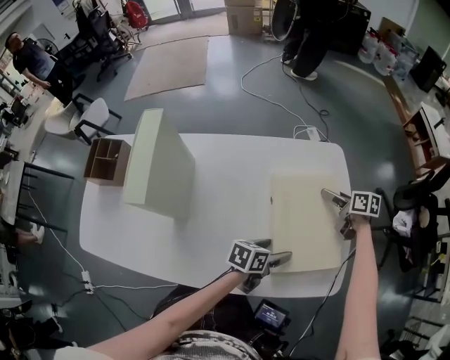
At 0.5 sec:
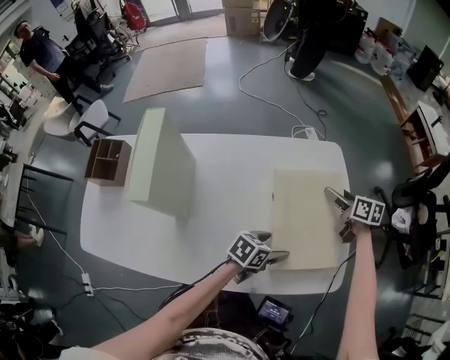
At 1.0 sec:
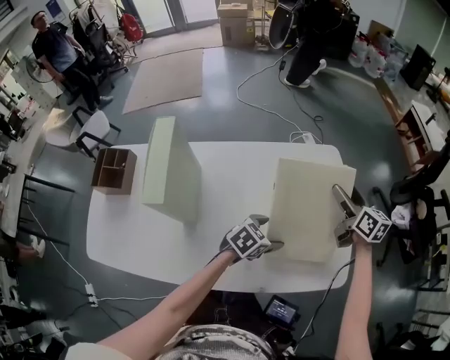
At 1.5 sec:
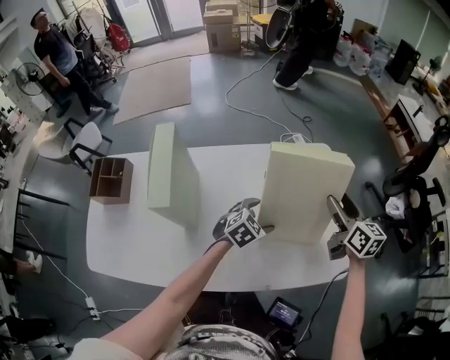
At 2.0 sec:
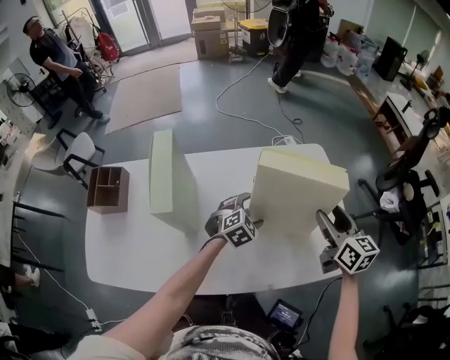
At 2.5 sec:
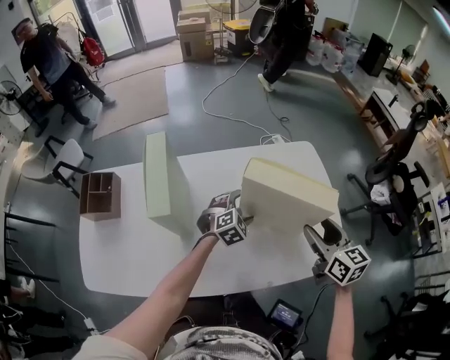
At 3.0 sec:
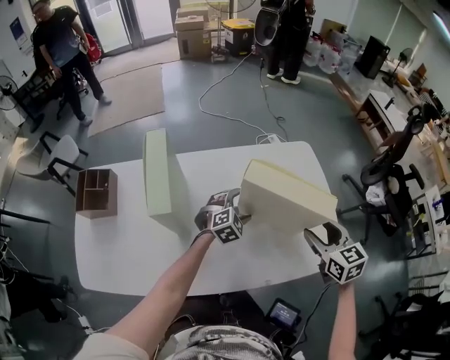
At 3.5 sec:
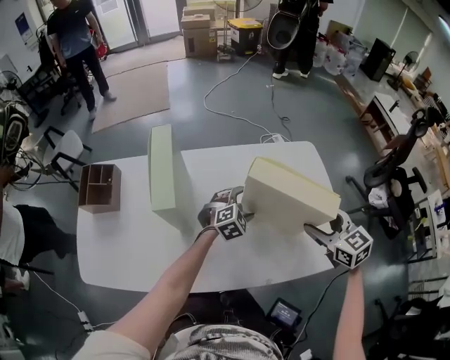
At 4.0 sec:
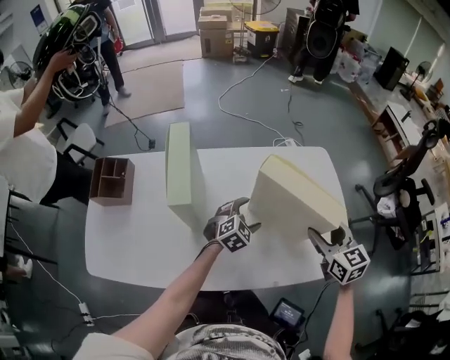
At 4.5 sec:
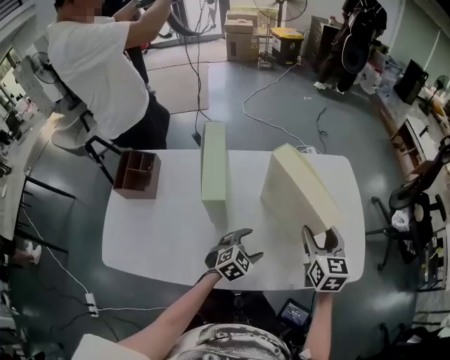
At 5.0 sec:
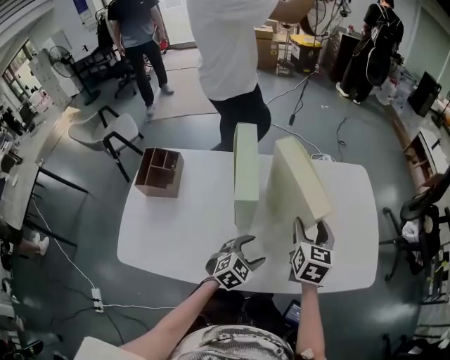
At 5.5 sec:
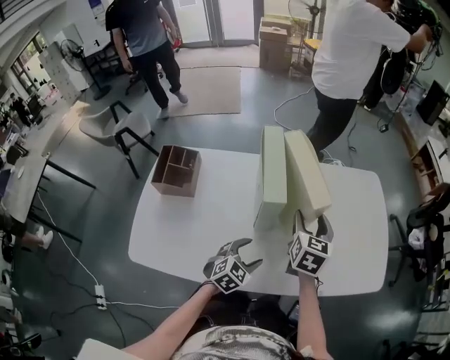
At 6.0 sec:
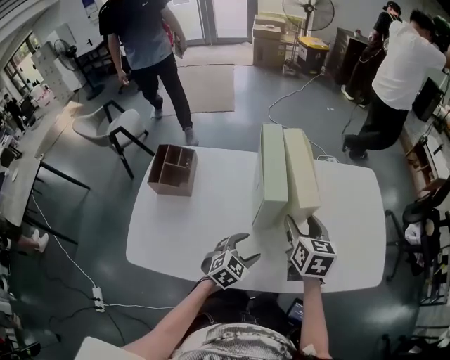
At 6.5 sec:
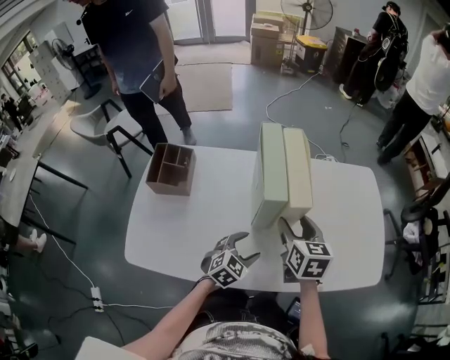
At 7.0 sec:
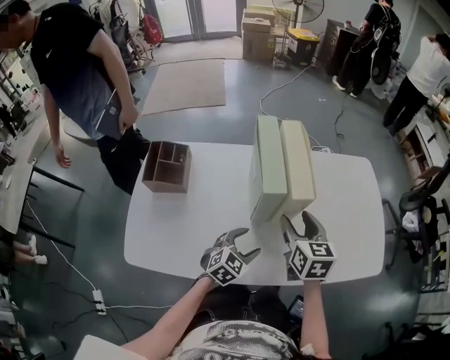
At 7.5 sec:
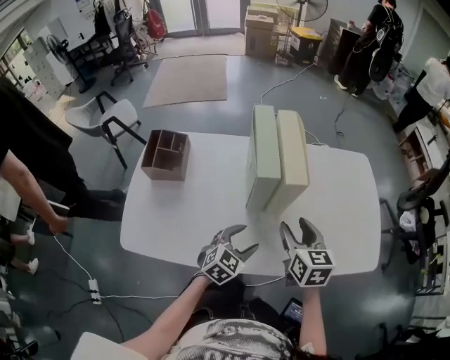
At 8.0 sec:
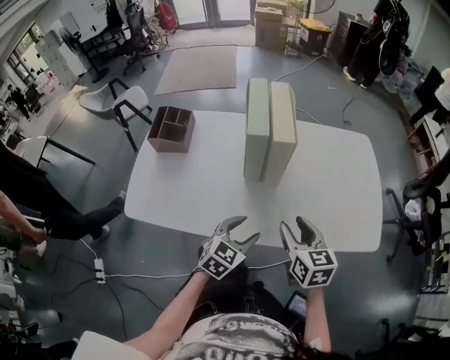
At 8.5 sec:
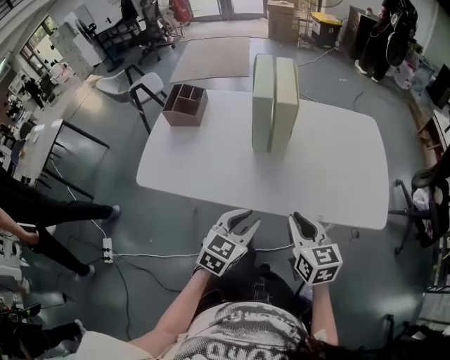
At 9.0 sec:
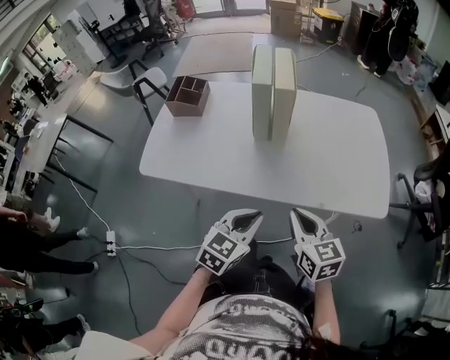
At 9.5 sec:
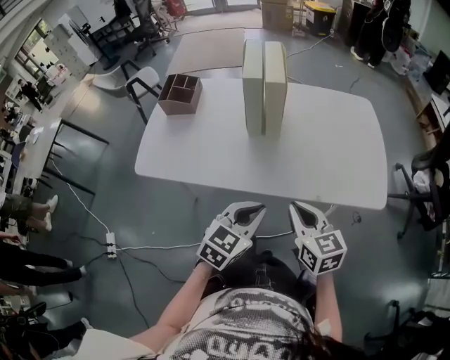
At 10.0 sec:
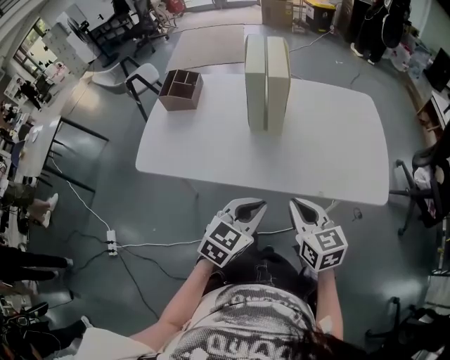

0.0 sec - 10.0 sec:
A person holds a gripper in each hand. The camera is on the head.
0.0 sec - 2.0 sec: The right gripper shifts roughly 25 cm upward and backward, and rotates some 40 degrees. The left gripper travels to the left and forward by some 15 cm, and rotates around the line of its fingers by some 70 degrees, clockwise from behind.
2.0 sec - 4.0 sec: The right gripper changes place by approximately 5 cm, and swivels about 20 degrees.
4.0 sec - 6.0 sec: The right gripper goes roughly 30 cm to the left; the left gripper is displaced backward and to the left by approximately 25 cm.
6.0 sec - 8.0 sec: The right gripper shifts approximately 20 cm backward and to the right. The left gripper goes approximately 15 cm backward, to the right and upward.
8.0 sec - 10.0 sec: The left gripper heads backward and upward, covering roughly 15 cm, and closes, while the right gripper travels backward by roughly 15 cm, and closes its fingers.

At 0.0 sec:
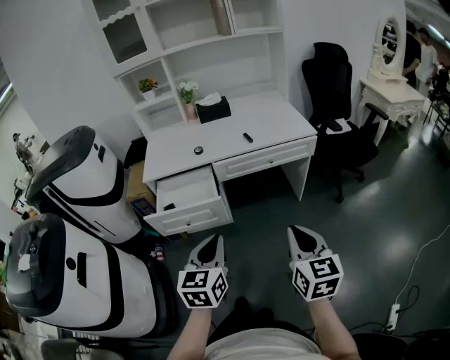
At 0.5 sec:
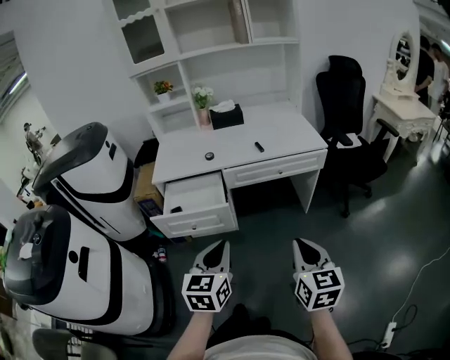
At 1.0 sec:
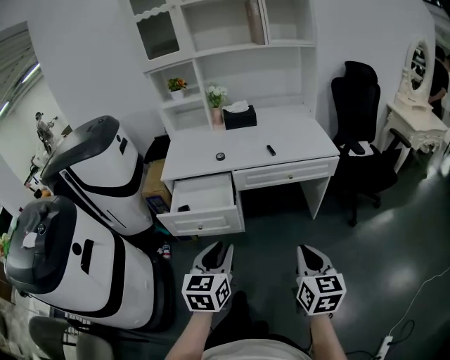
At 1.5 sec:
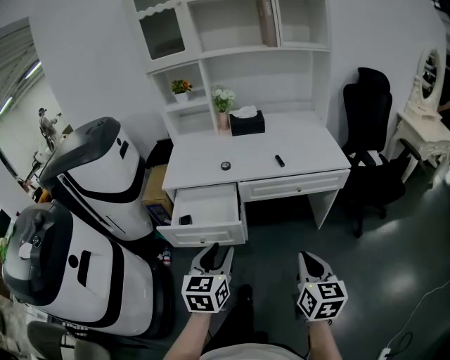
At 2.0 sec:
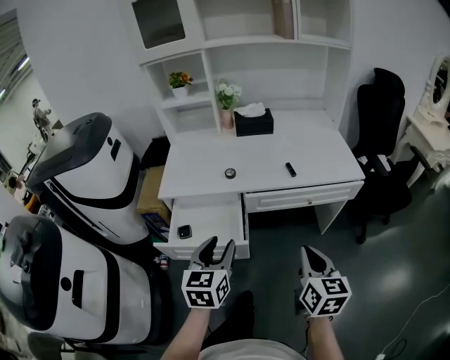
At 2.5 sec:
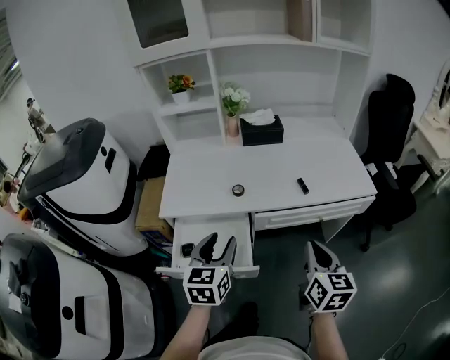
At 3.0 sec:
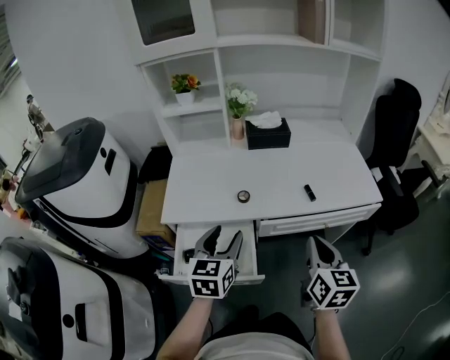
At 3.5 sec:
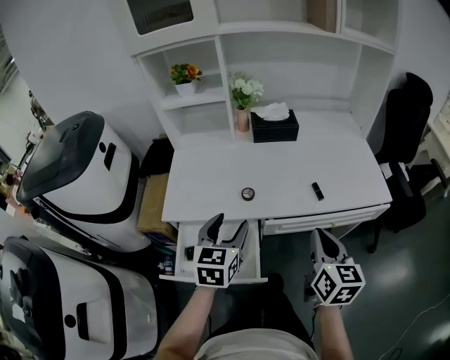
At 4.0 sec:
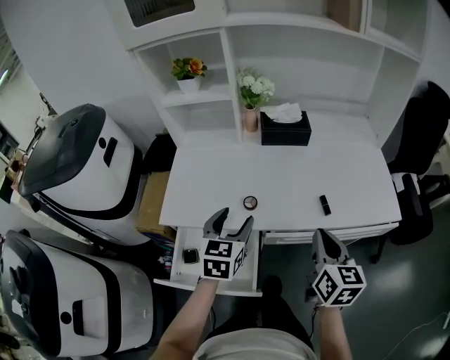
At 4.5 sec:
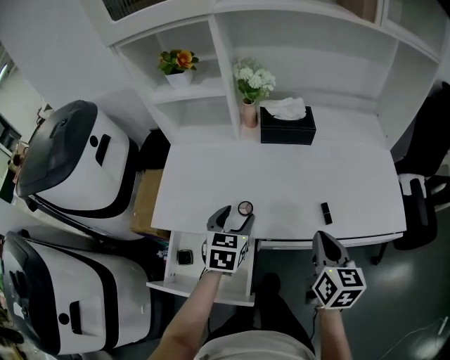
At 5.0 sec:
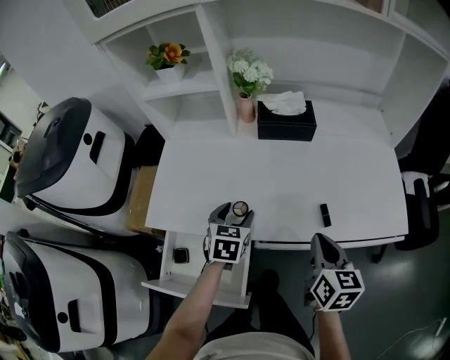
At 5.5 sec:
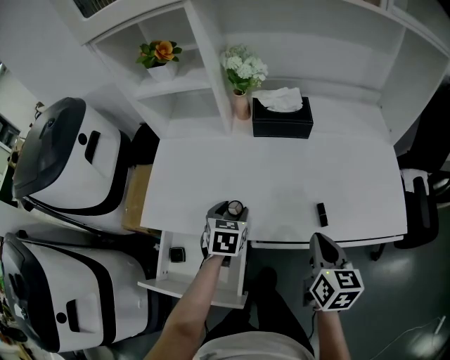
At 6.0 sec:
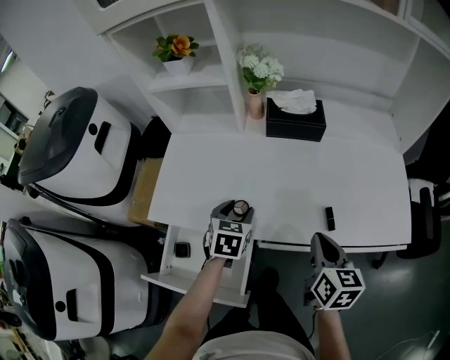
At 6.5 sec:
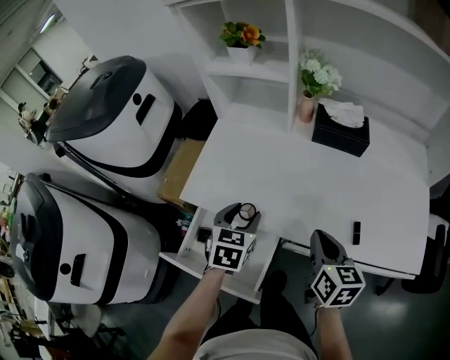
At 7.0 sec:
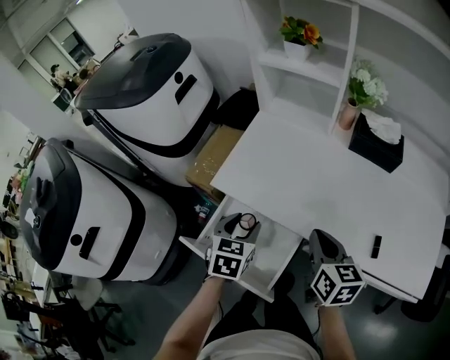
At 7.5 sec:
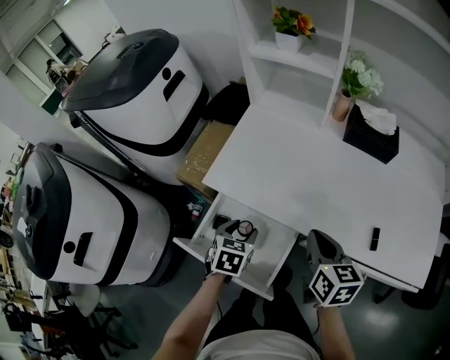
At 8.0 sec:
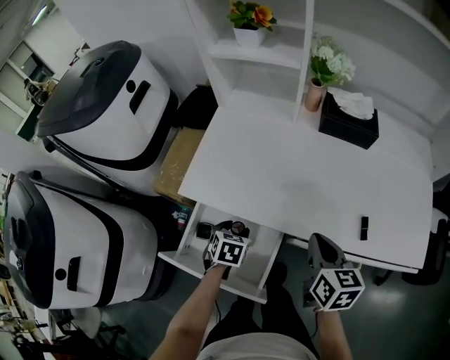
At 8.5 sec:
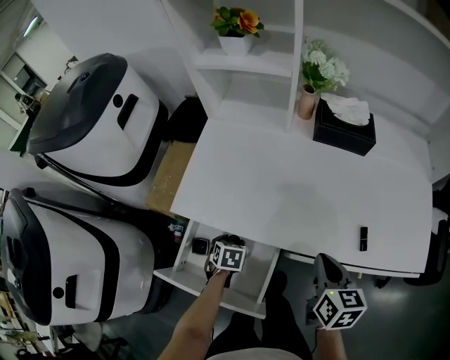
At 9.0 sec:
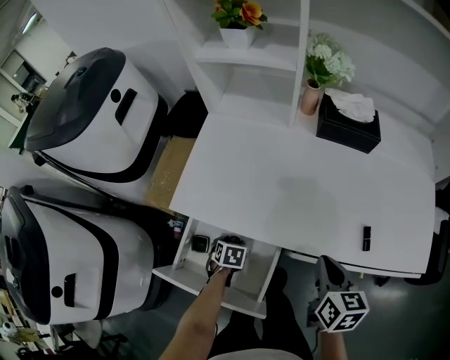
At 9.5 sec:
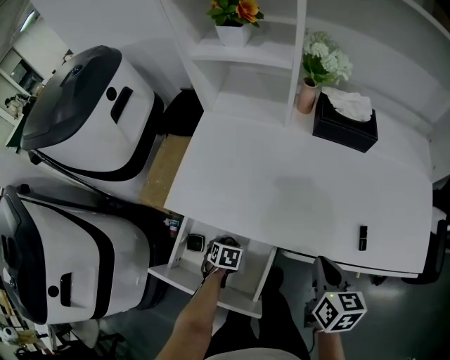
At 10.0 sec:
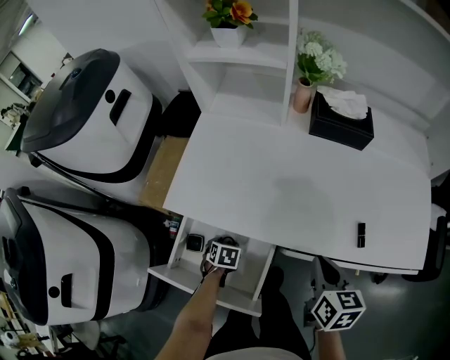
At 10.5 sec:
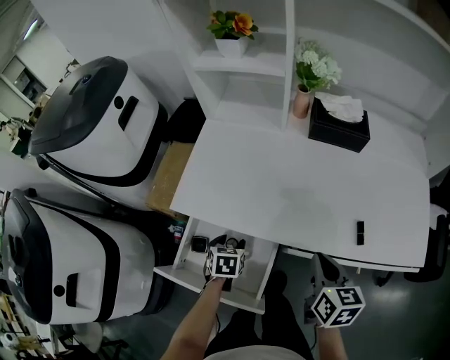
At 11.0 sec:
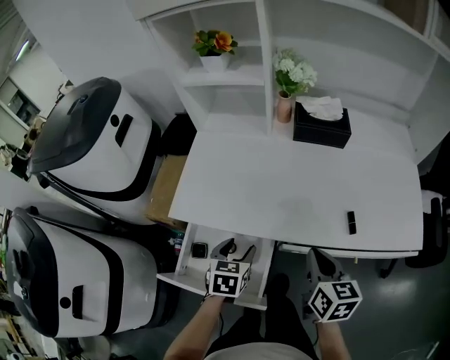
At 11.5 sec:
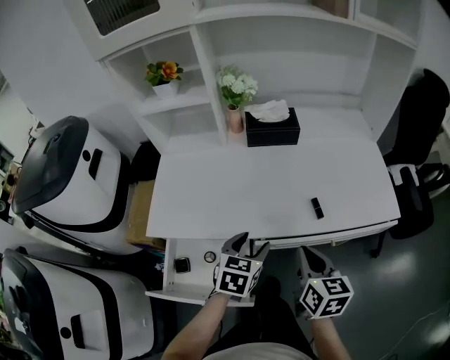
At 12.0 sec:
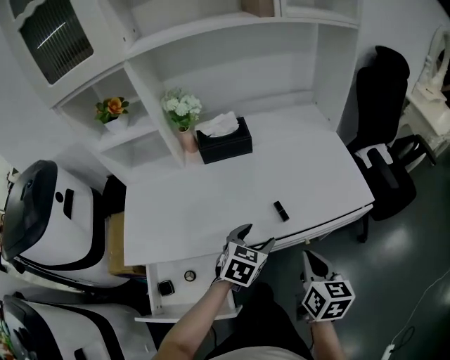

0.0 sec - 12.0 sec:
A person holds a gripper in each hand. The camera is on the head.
0.0 sec - 2.0 sec: The grippers both shift forward by approximately 20 cm. The left gripper opens up.
2.0 sec - 4.0 sec: The two grippers go about 25 cm forward.
4.0 sec - 6.0 sec: The left gripper travels downward and forward by about 15 cm, while the right gripper heads forward and downward, covering approximately 10 cm.
6.0 sec - 8.0 sec: The right gripper shifts approximately 10 cm to the left. Meanwhile the left gripper goes about 20 cm to the left, downward and backward.
8.0 sec - 10.0 sec: The left gripper shifts about 10 cm downward. The right gripper ends up some 5 cm from where it was.
10.0 sec - 12.0 sec: The right gripper shifts by some 20 cm, and changes its angle by roughly 30 degrees. Meanwhile the left gripper changes place by approximately 40 cm, and tips its fingers upward by some 30 degrees.

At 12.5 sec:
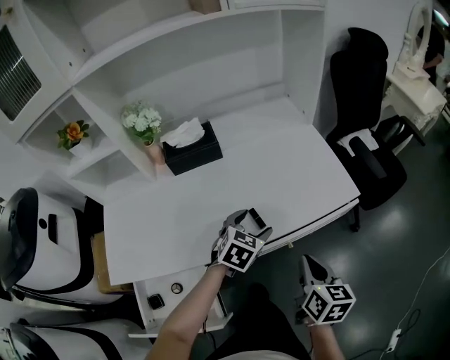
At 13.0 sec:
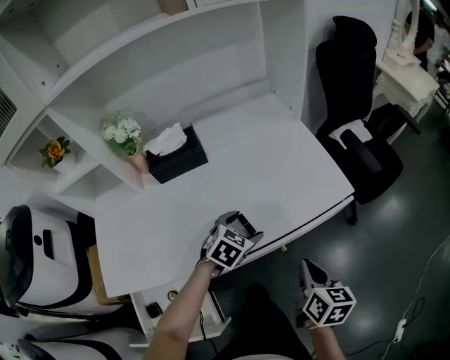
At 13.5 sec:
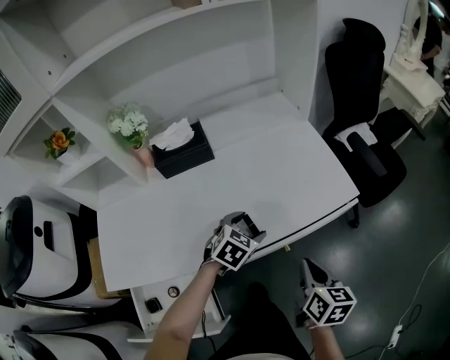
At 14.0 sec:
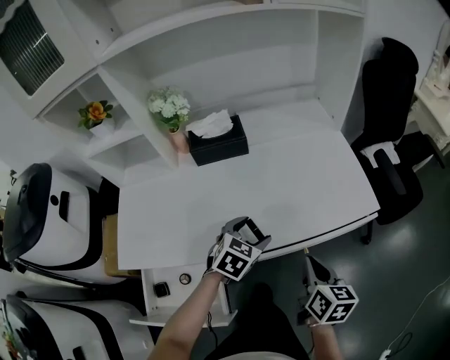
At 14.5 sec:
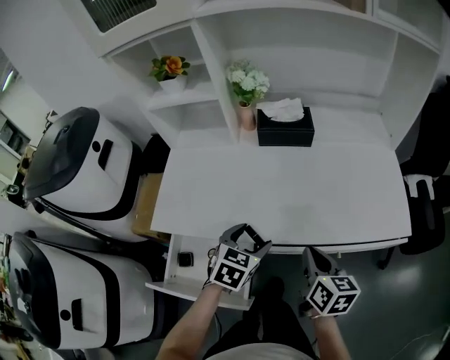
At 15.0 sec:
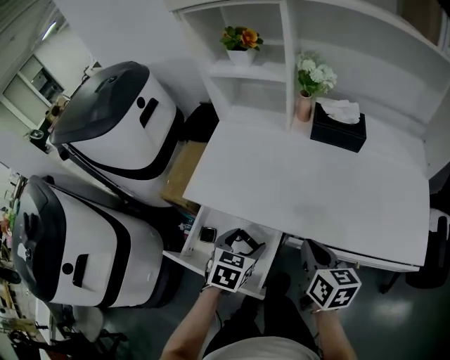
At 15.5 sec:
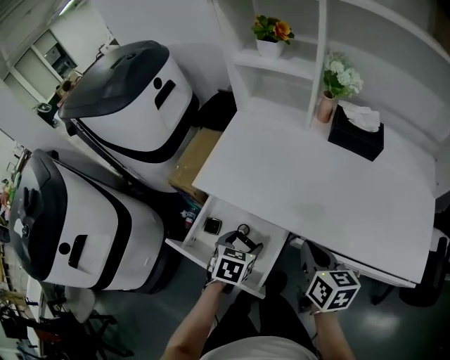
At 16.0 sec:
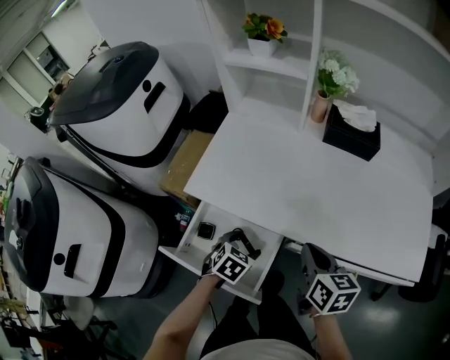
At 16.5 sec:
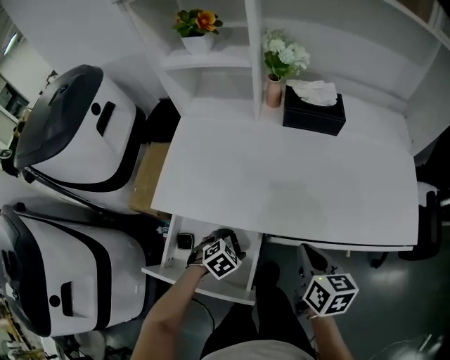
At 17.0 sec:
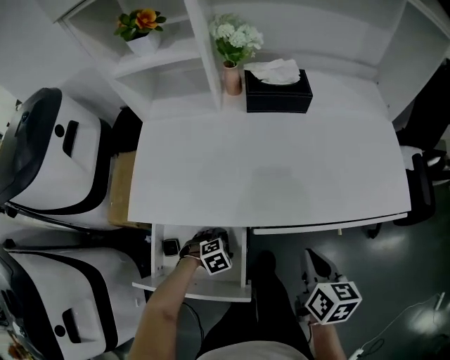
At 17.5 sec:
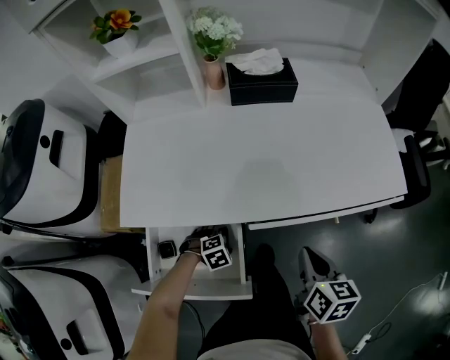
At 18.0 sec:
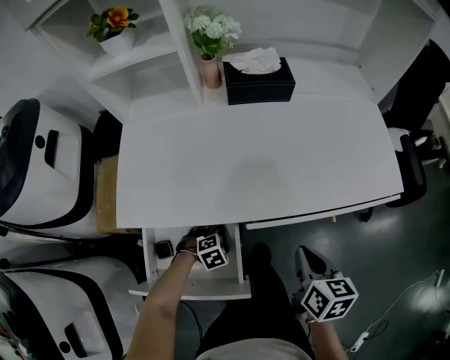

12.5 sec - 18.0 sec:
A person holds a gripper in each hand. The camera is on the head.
12.5 sec - 14.5 sec: The left gripper ends up approximately 20 cm from where it was, and rotates approximately 30 degrees. Meanwhile the right gripper ends up approximately 15 cm from where it was, and changes its angle by about 30 degrees.
14.5 sec - 16.0 sec: The left gripper moves to the left and downward, approximately 20 cm; the right gripper travels to the left by approximately 10 cm, and turns by some 20 degrees.
16.0 sec - 18.0 sec: The left gripper travels downward by about 15 cm, and rotates around the line of its fingers by approximately 60 degrees, clockwise from behind, while the right gripper moves roughly 15 cm, and changes its angle by approximately 30 degrees.
